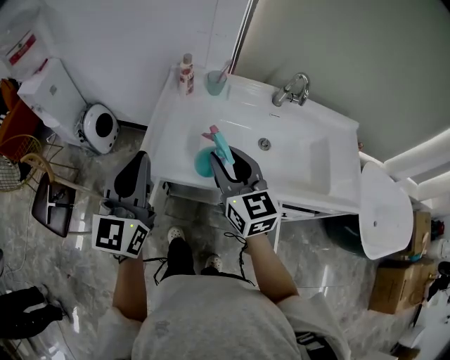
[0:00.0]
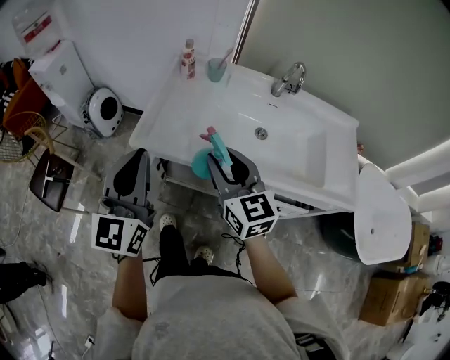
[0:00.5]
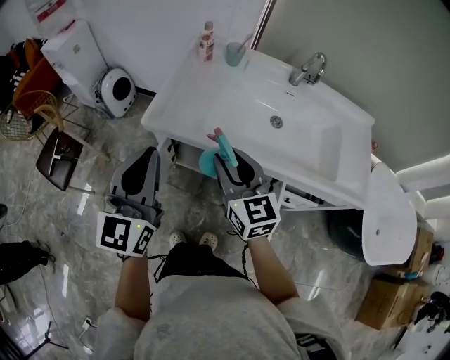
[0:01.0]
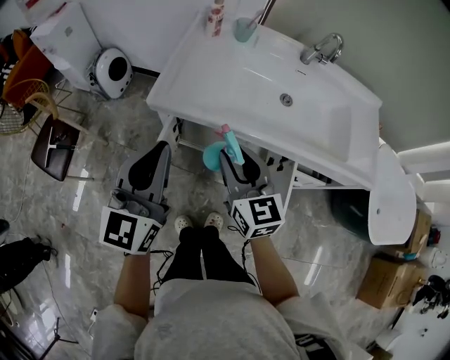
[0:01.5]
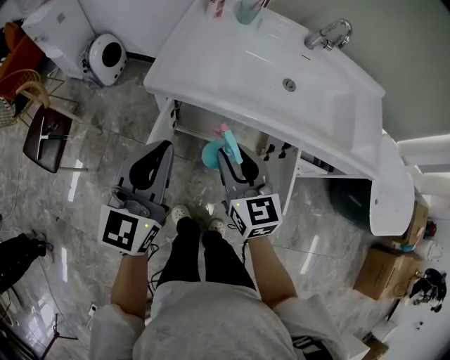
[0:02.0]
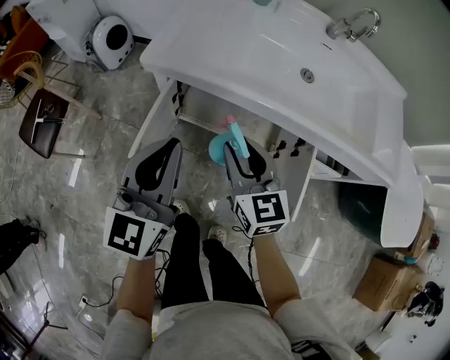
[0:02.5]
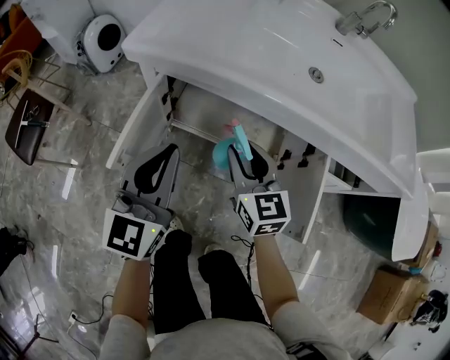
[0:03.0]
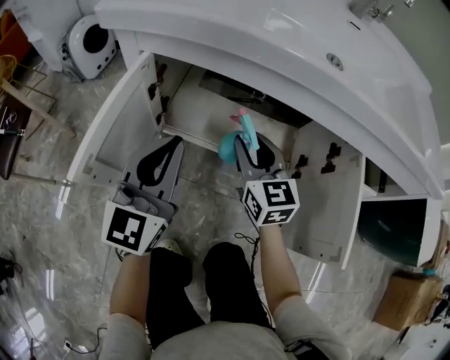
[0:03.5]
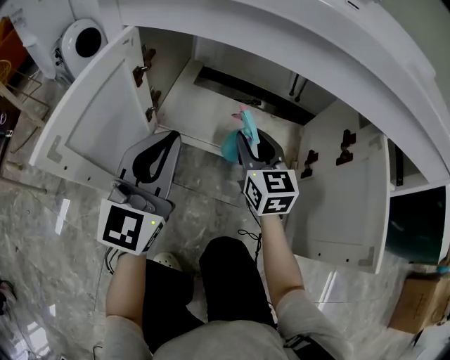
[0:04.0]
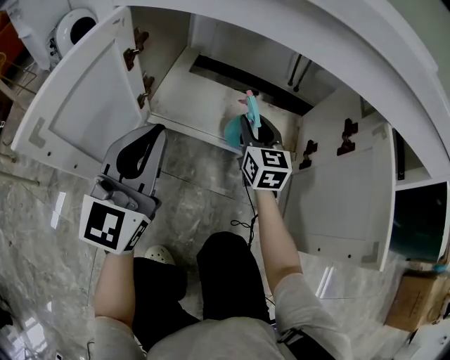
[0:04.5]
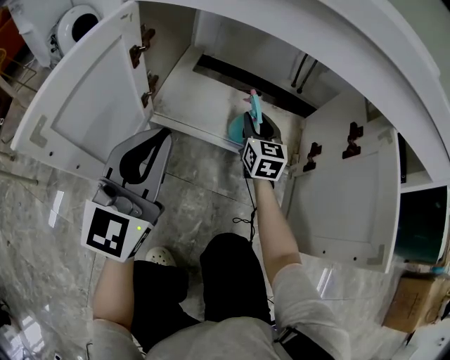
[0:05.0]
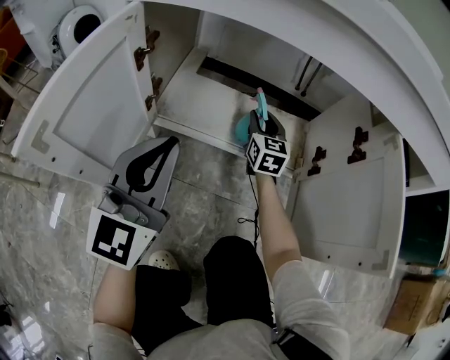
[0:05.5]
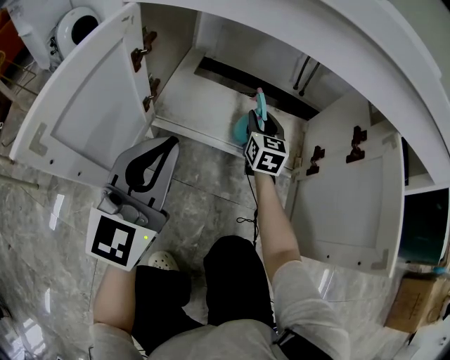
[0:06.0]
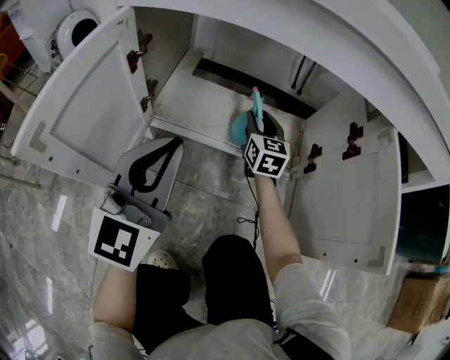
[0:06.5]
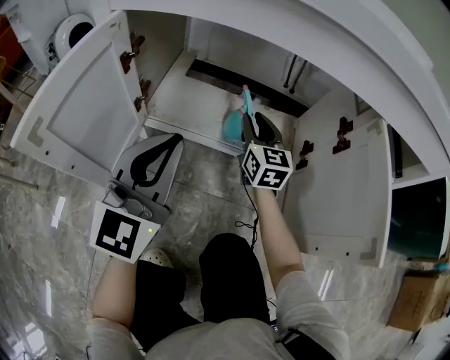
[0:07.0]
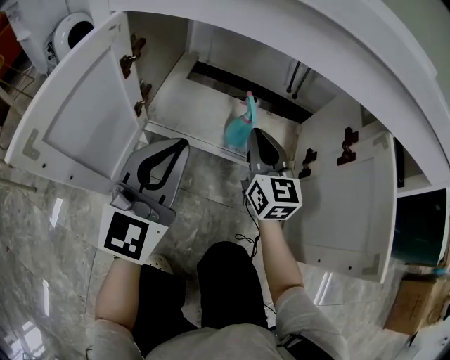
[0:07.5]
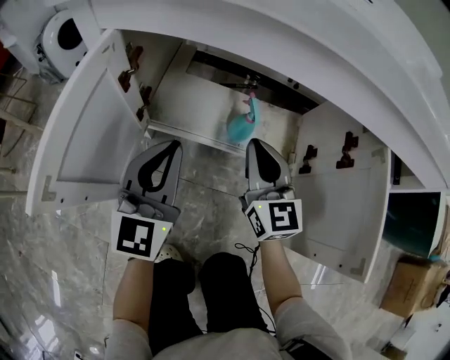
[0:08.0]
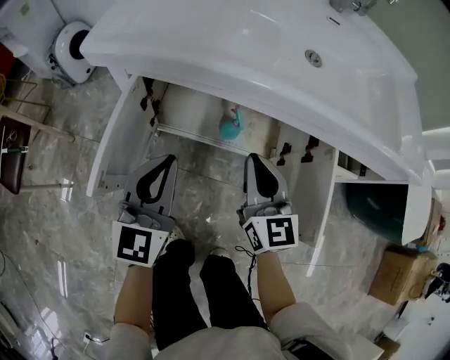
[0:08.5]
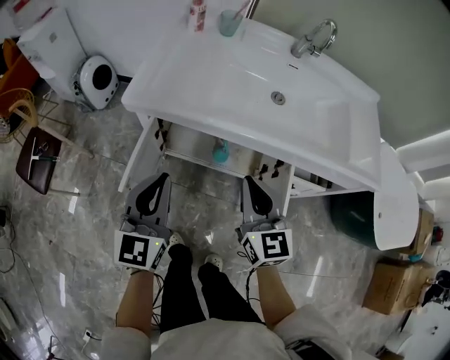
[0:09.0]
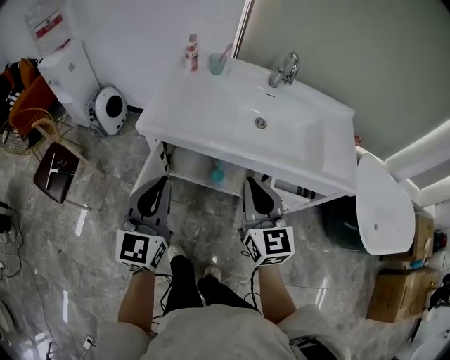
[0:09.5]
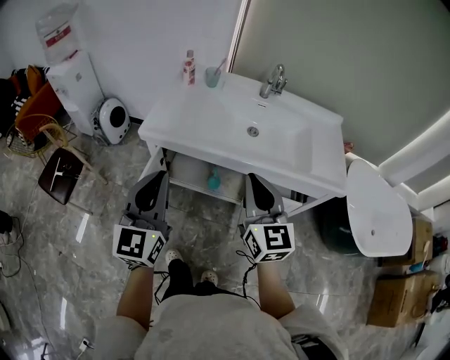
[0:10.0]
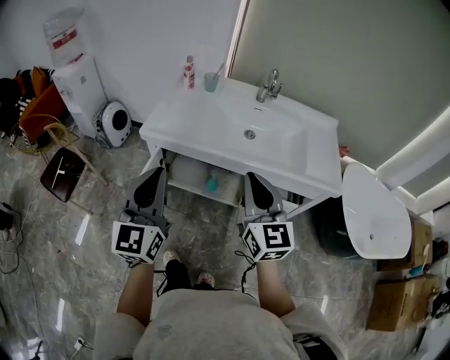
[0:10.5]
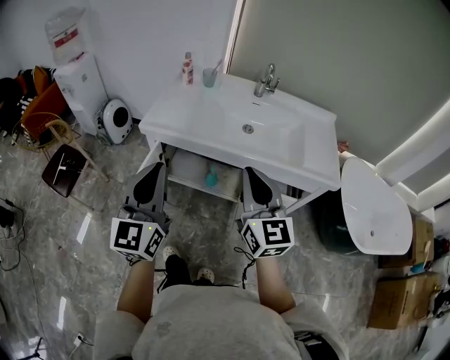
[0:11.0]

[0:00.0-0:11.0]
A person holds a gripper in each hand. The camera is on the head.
0:00.0 to 0:02.0: The grippers both shift backward and downward by some 20 cm.
0:02.0 to 0:03.5: Both grippers travel together downward, some 35 cm.
0:03.5 to 0:05.5: The right gripper is displaced downward and forward by some 25 cm. Meanwhile the left gripper moves downward, some 10 cm.
0:05.5 to 0:07.5: The right gripper goes some 15 cm backward and upward, and closes up.
0:07.5 to 0:09.0: Both grippers travel together upward, about 40 cm.
0:09.0 to 0:11.0: The grippers both shift upward and backward by some 25 cm.

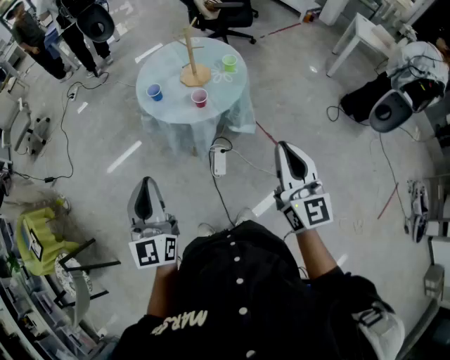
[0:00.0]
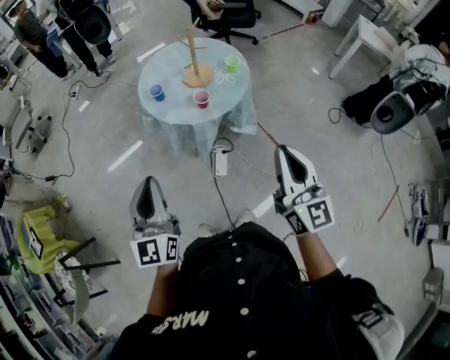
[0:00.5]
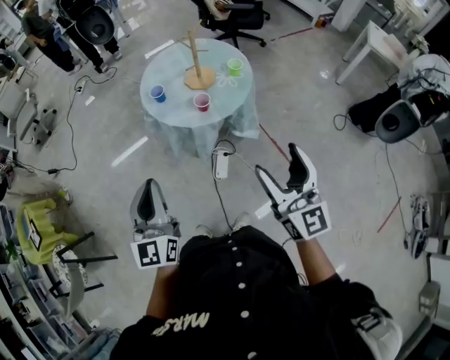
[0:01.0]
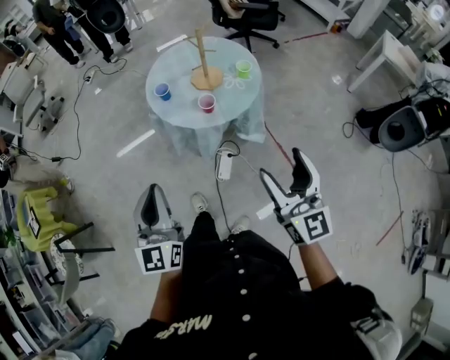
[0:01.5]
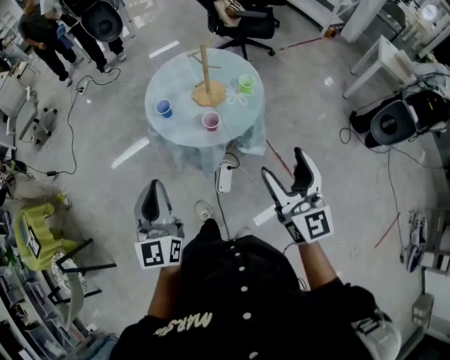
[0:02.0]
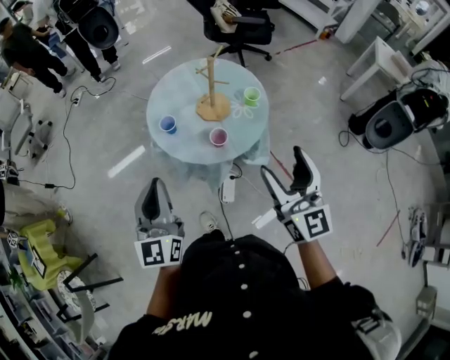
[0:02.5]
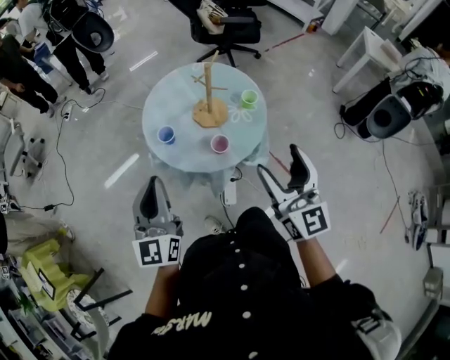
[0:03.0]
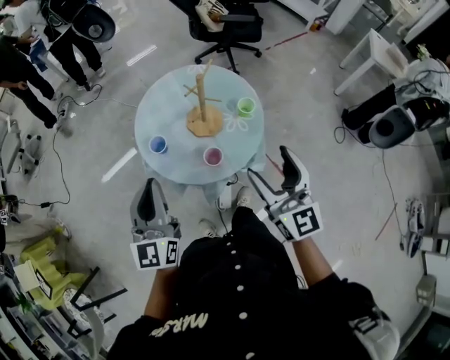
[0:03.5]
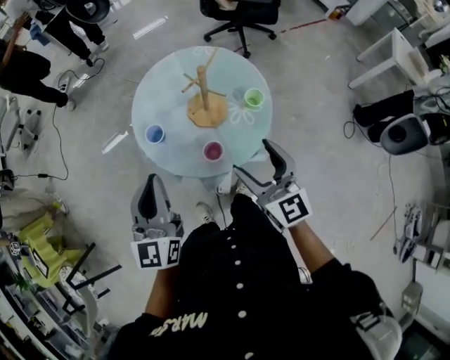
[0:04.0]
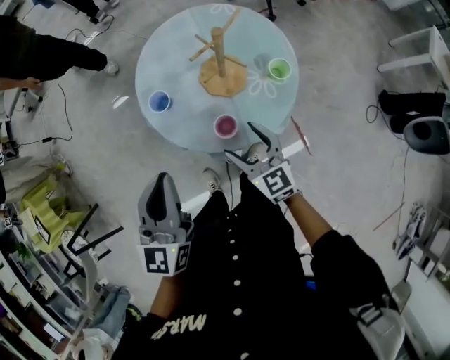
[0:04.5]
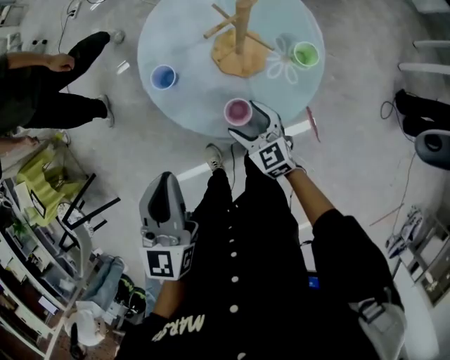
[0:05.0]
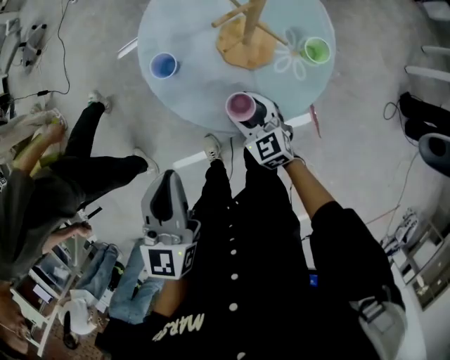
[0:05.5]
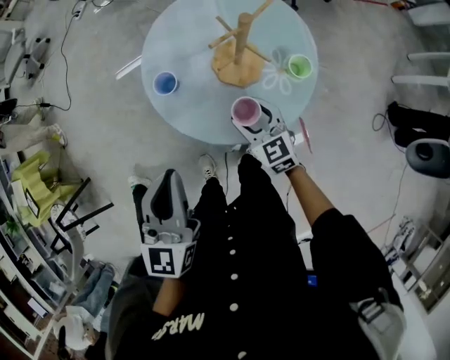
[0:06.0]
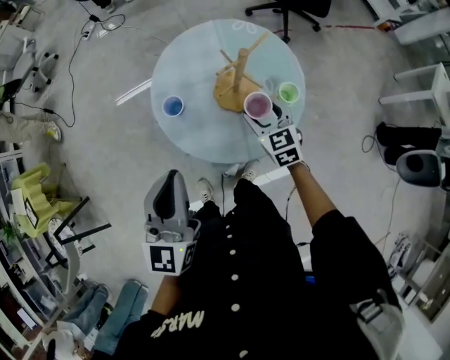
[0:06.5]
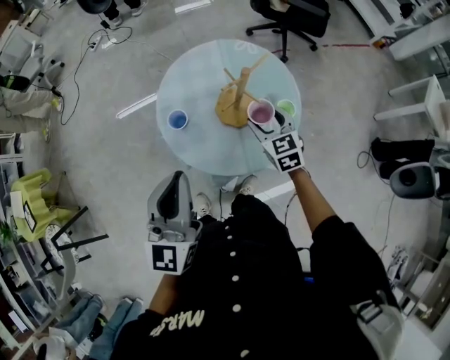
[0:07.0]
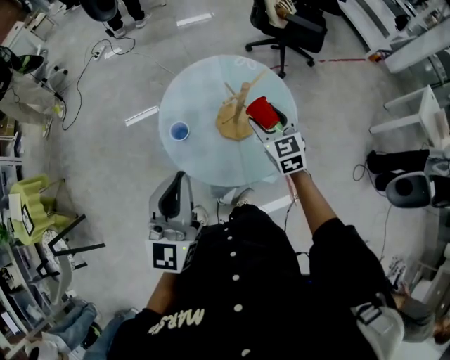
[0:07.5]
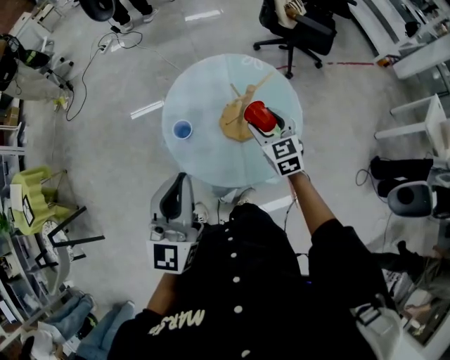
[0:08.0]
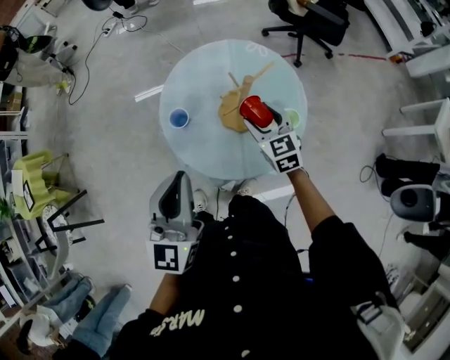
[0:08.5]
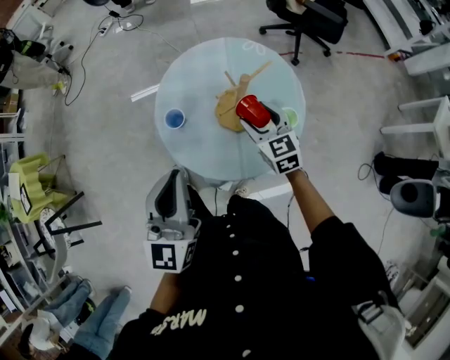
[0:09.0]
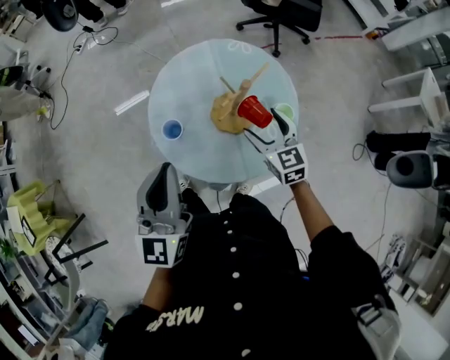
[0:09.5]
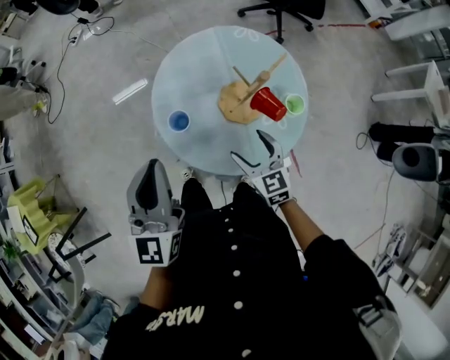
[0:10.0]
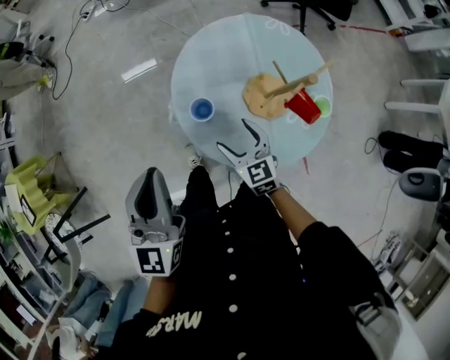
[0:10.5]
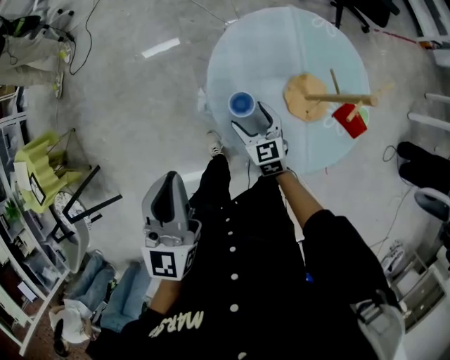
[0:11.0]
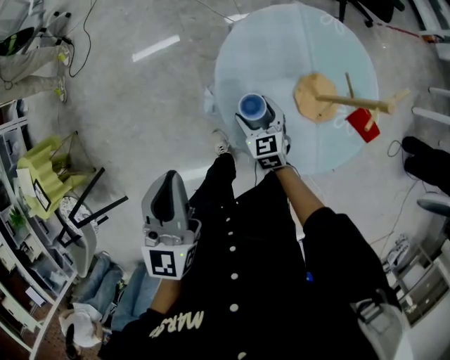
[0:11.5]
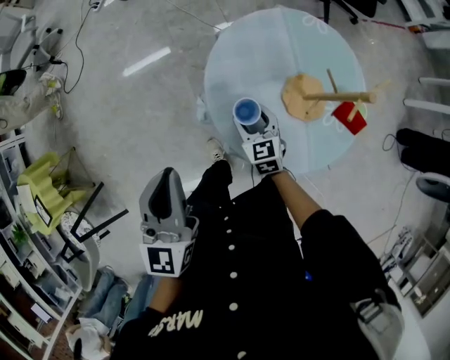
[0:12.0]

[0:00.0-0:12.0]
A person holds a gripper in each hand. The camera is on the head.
0:00.0 to 0:02.0: The two grippers go approximately 15 cm forward. The right gripper opens.
0:02.0 to 0:04.0: The left gripper moves forward, about 25 cm. The right gripper is displaced forward and downward by about 30 cm.
0:04.0 to 0:06.0: The left gripper moves downward, some 10 cm, while the right gripper shifts about 25 cm downward and forward, and swivels approximately 30 degrees.
0:06.0 to 0:08.0: The left gripper heads upward, covering about 10 cm. Meanwhile the right gripper shifts approximately 15 cm upward and forward.
0:08.0 to 0:10.0: The left gripper is displaced forward and to the left by some 10 cm; the right gripper travels downward, to the left and backward by about 15 cm.
0:10.0 to 0:12.0: The right gripper shifts roughly 25 cm to the left, forward and downward. The left gripper shifts roughly 15 cm to the left.

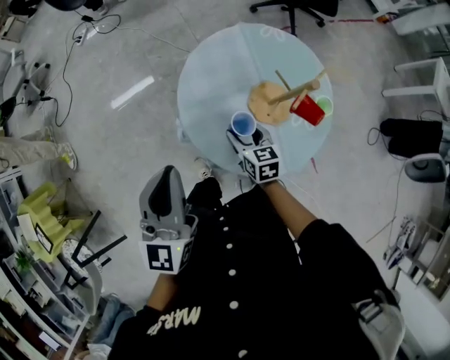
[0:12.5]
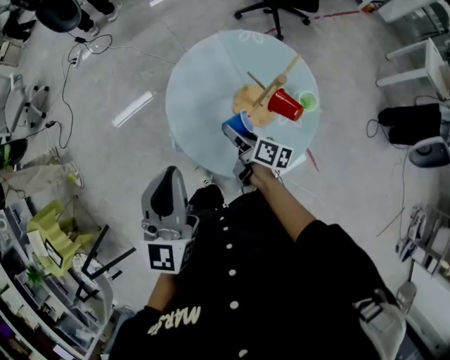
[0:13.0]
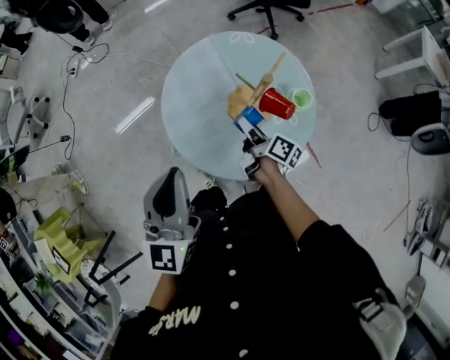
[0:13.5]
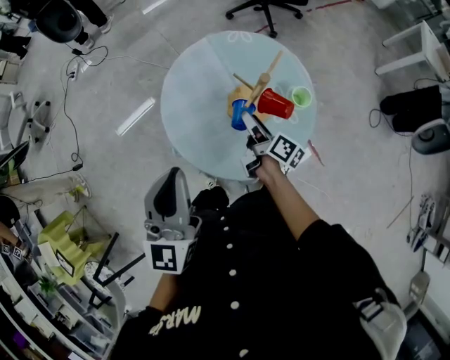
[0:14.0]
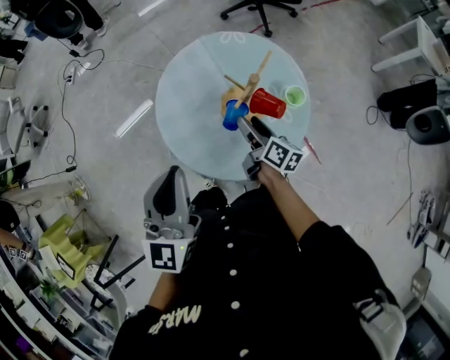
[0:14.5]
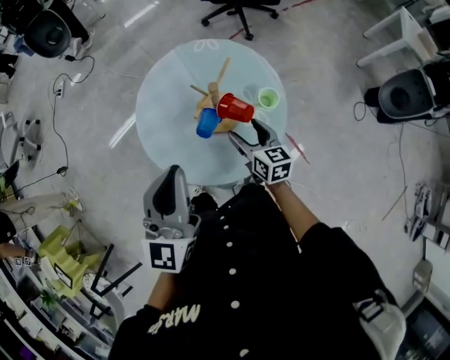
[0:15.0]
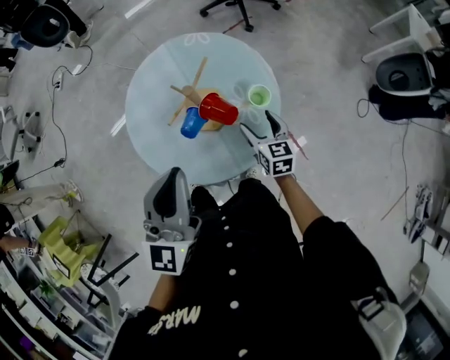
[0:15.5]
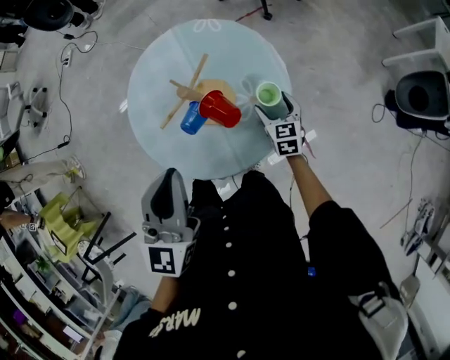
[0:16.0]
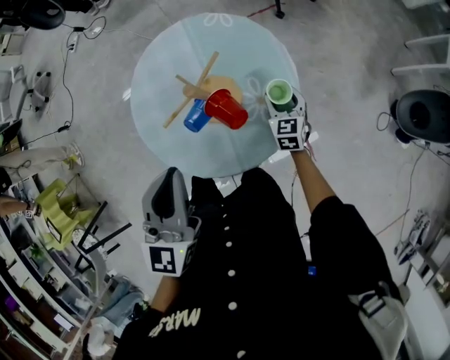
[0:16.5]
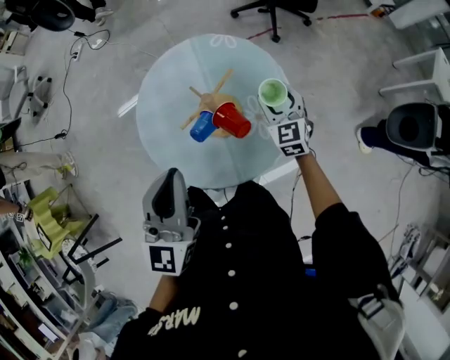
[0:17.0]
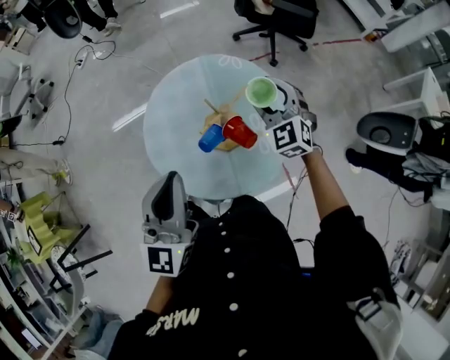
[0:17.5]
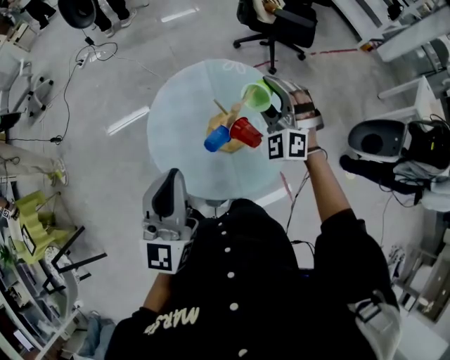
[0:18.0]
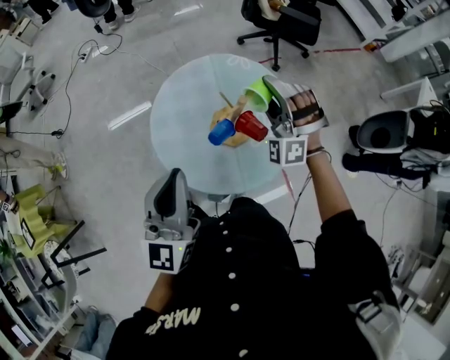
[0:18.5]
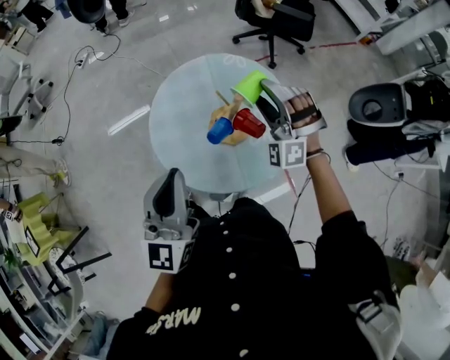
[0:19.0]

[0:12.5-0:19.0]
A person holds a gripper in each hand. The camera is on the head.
0:12.5 to 0:14.5: The left gripper shifts some 10 cm to the right. The right gripper travels to the right and upward by roughly 15 cm, and rotates around the line of its fingers by some 40 degrees, clockwise from behind.
0:14.5 to 0:17.0: The left gripper moves to the right, some 15 cm, while the right gripper goes roughly 20 cm to the right and forward, and rotates around the line of its fingers by some 80 degrees, counterclockwise from behind.
0:17.0 to 0:19.0: The right gripper shifts about 20 cm upward and to the left, and twists roughly 60 degrees counterclockwise, seen from behind. The left gripper heads to the left, covering about 10 cm.
